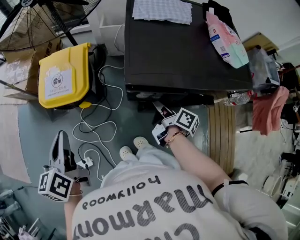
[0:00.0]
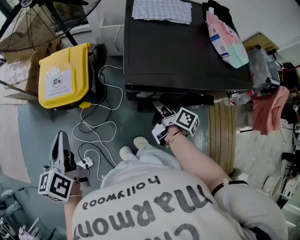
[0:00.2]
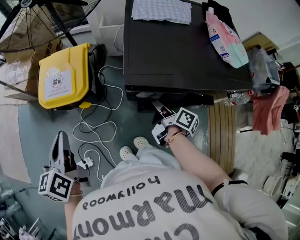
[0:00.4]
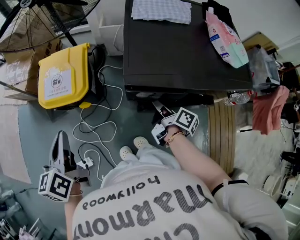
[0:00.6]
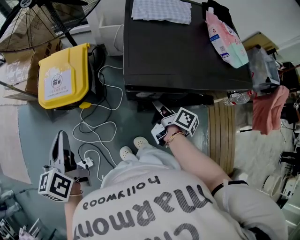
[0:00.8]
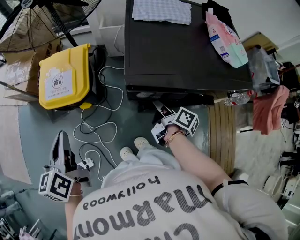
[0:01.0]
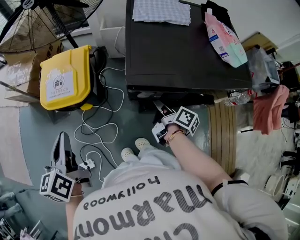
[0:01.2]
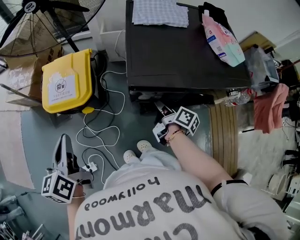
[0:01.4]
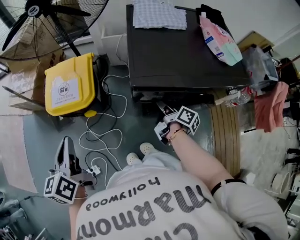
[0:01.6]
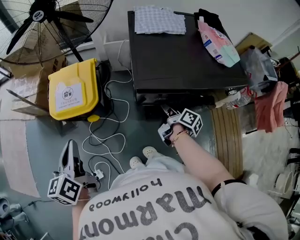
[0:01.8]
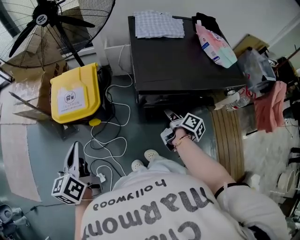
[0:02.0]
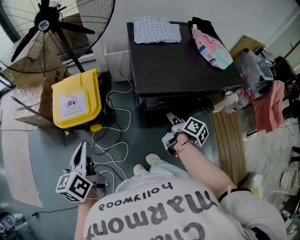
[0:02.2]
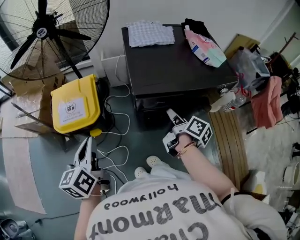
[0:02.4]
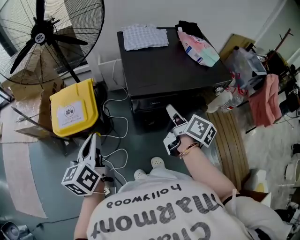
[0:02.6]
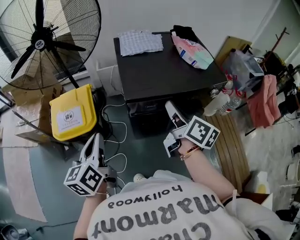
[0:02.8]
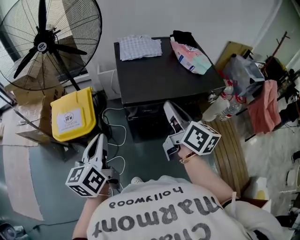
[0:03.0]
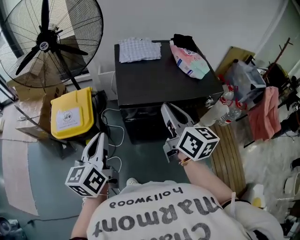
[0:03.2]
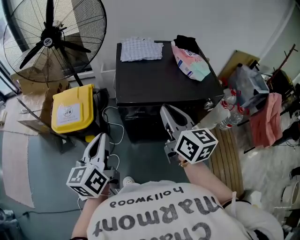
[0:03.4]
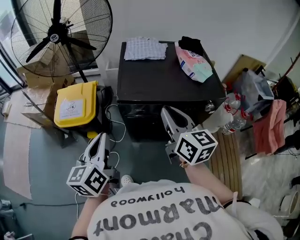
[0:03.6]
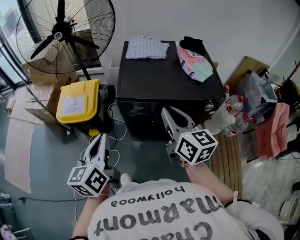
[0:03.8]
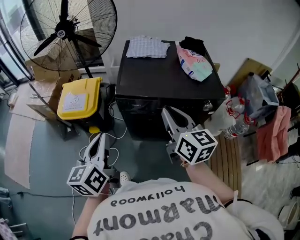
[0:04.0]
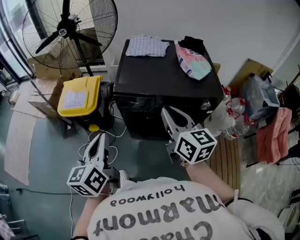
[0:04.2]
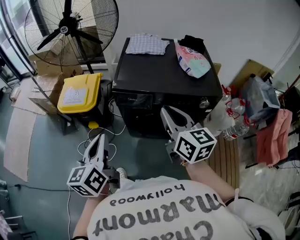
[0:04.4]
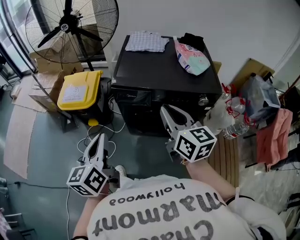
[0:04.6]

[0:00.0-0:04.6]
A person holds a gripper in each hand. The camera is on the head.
0:00.0 to 0:01.6: There are only small adjustments of the grippers.
0:01.6 to 0:03.0: The right gripper shifts approximately 25 cm upward, and twists about 40 degrees counterclockwise, seen from behind, while the left gripper shifts approximately 15 cm to the right.
0:03.0 to 0:04.6: The right gripper goes approximately 10 cm backward and to the right, and rotates approximately 30 degrees. Meanwhile the left gripper shifts some 20 cm backward and to the right.

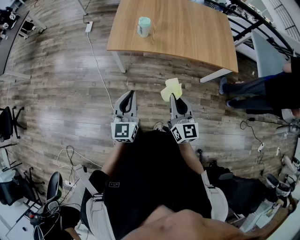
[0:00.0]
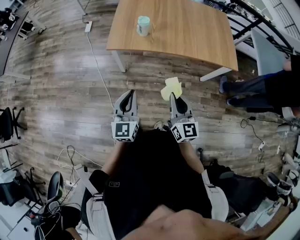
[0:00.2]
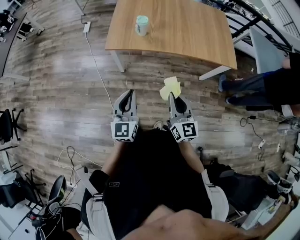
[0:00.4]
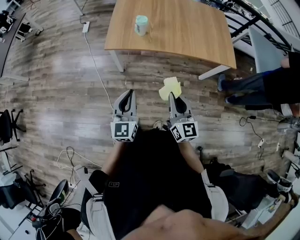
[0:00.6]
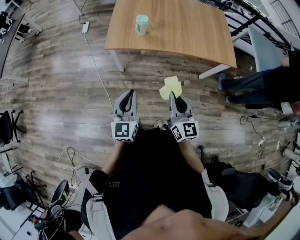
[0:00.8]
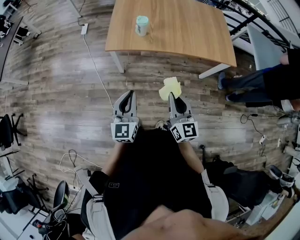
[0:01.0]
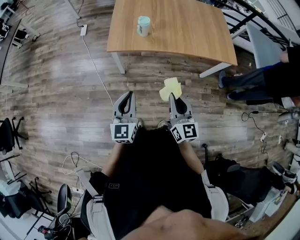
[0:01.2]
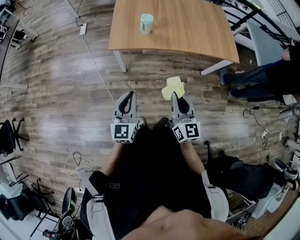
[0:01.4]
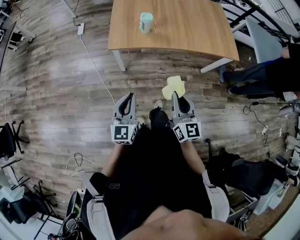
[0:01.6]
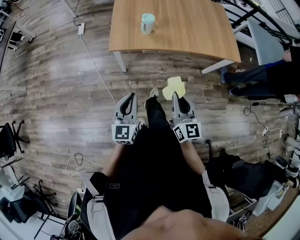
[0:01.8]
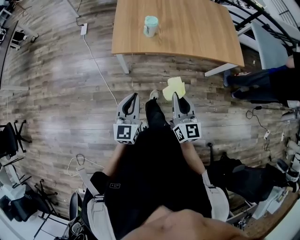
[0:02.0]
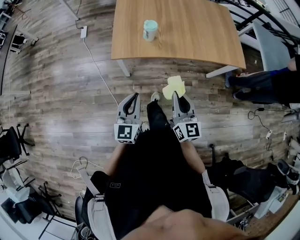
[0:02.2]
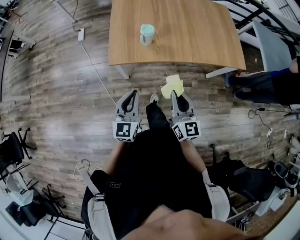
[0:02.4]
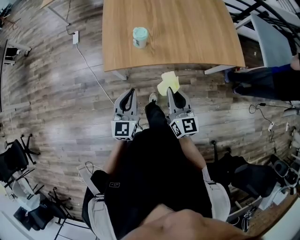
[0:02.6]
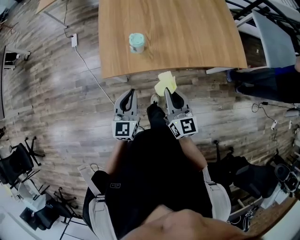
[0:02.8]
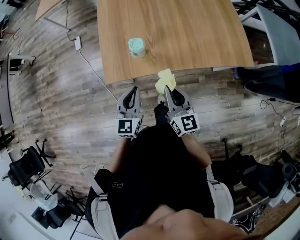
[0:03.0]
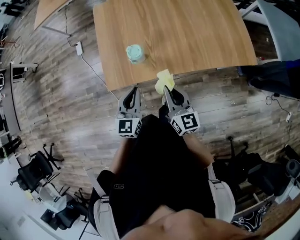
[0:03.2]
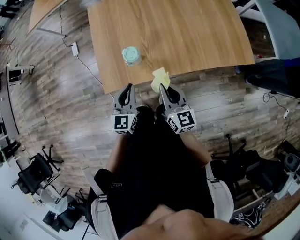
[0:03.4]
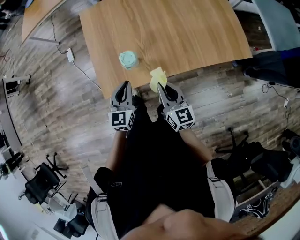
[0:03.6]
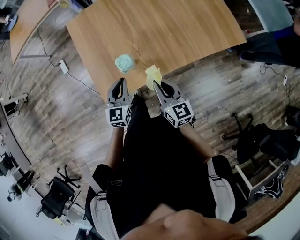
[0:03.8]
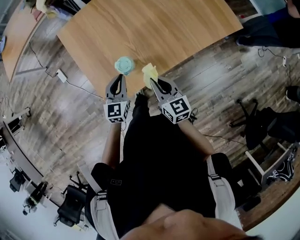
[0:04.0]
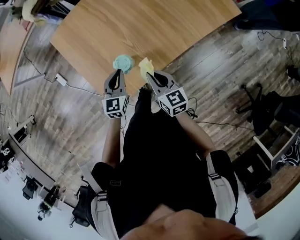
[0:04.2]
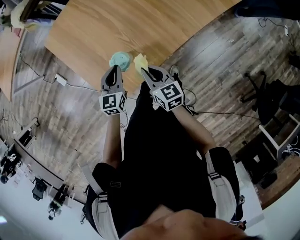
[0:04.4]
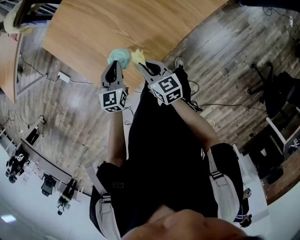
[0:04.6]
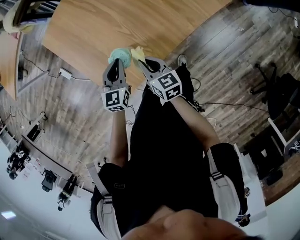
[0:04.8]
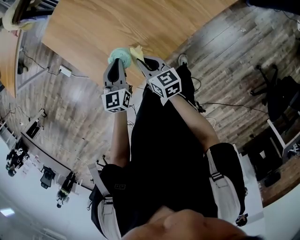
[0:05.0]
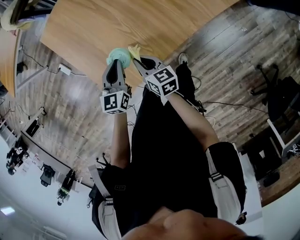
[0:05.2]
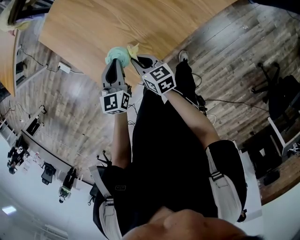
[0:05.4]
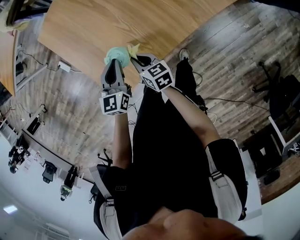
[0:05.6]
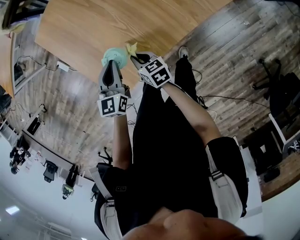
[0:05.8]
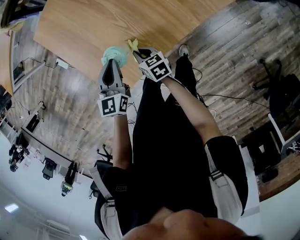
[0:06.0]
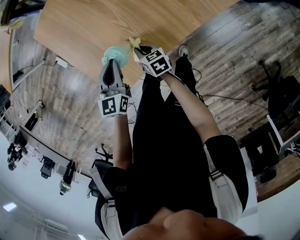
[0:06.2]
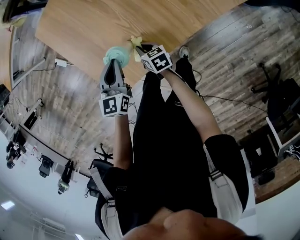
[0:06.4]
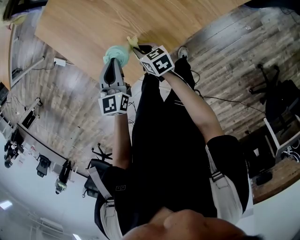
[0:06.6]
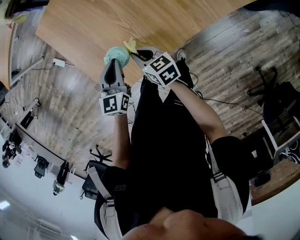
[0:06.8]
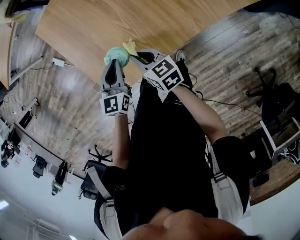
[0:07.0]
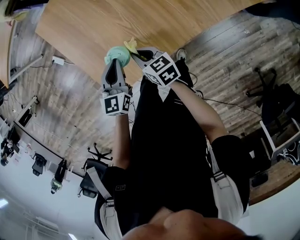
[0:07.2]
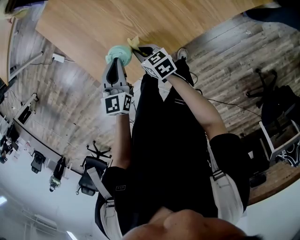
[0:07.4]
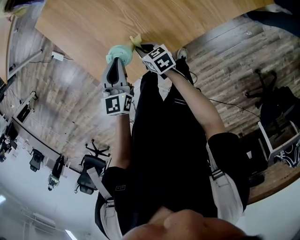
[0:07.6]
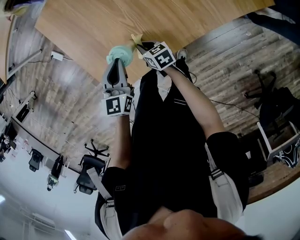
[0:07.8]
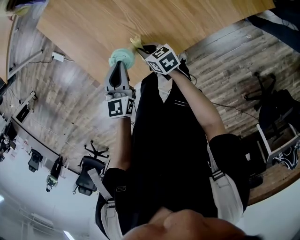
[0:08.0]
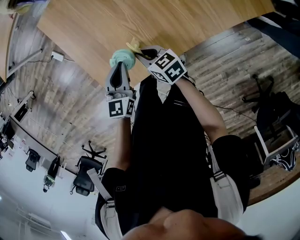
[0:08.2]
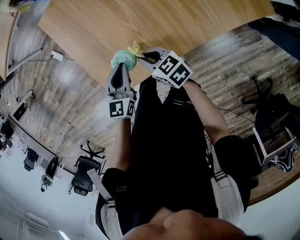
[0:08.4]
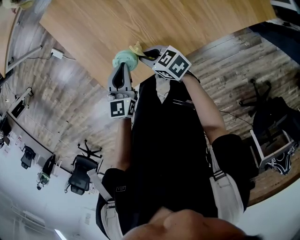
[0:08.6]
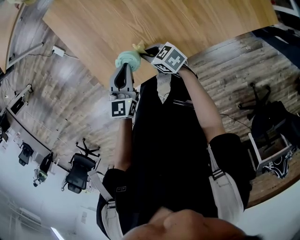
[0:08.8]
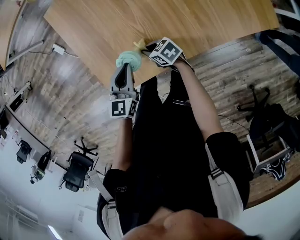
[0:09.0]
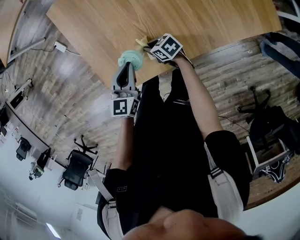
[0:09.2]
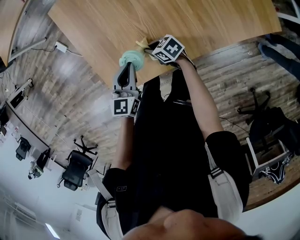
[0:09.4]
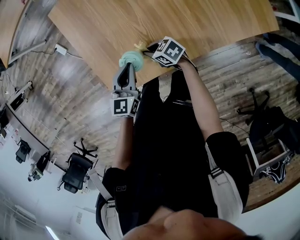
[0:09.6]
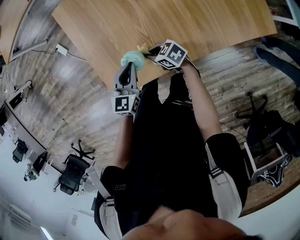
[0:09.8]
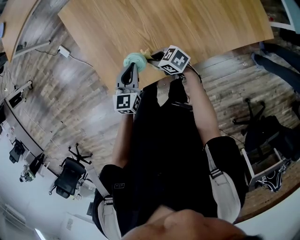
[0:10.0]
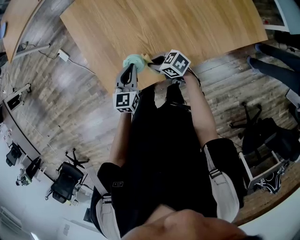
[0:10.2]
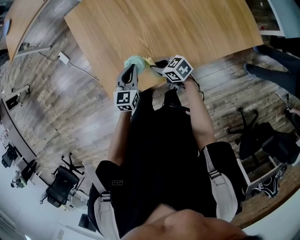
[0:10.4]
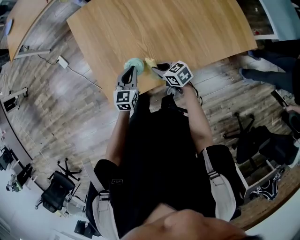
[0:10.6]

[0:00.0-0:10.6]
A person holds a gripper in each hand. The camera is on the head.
0:00.0 to 0:01.6: The two grippers go approximately 10 cm to the left.
0:01.6 to 0:03.0: The two grippers go some 30 cm forward.
0:03.0 to 0:04.6: The left gripper goes roughly 25 cm forward and downward, and swivels about 30 degrees, while the right gripper goes approximately 25 cm downward, forward and to the left, and turns by approximately 30 degrees.
0:04.6 to 0:06.0: The right gripper is displaced downward by roughly 15 cm, and turns by approximately 20 degrees.
0:06.0 to 0:07.6: The right gripper reaches about 10 cm upward, then returns.
0:07.6 to 0:09.0: The right gripper moves approximately 10 cm upward and comes back, and turns by some 30 degrees.
0:09.0 to 0:10.6: The right gripper moves upward, roughly 10 cm.

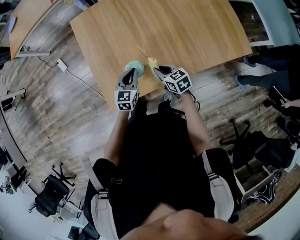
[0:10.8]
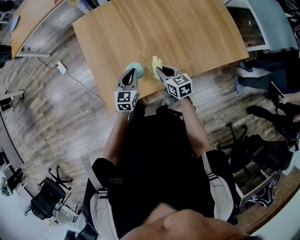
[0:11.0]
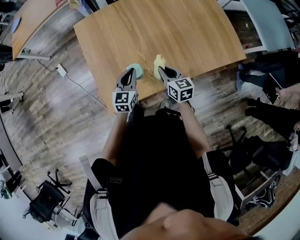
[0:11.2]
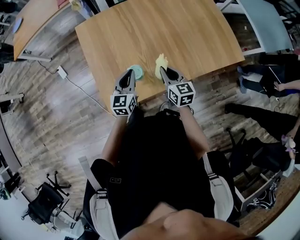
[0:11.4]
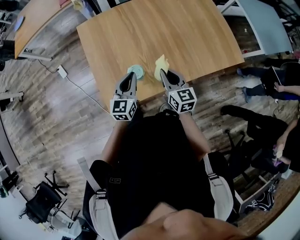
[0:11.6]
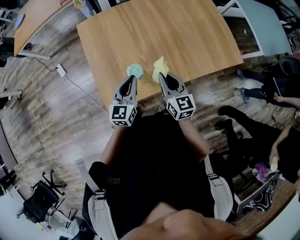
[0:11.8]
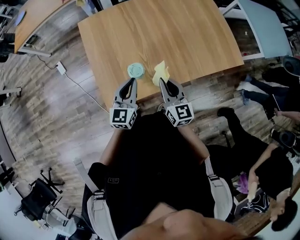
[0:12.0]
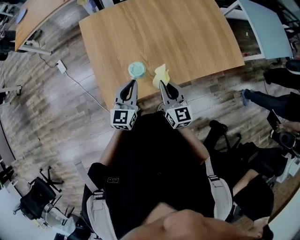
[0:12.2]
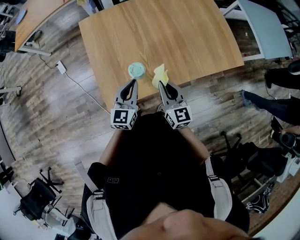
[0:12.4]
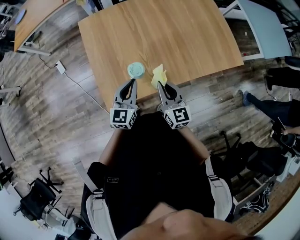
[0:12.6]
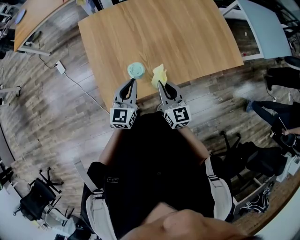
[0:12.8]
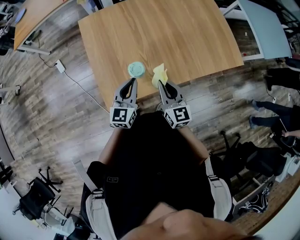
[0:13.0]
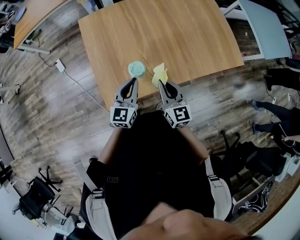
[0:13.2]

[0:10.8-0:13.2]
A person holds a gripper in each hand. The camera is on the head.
0:10.8 to 0:12.0: Both grippers travel together upward, approximately 15 cm. The right gripper turns by approximately 40 degrees.
0:12.0 to 0:13.2: The grippers move only a little.

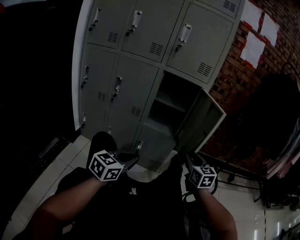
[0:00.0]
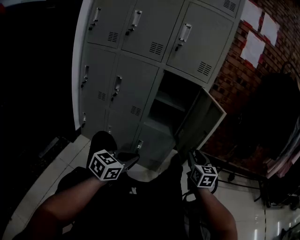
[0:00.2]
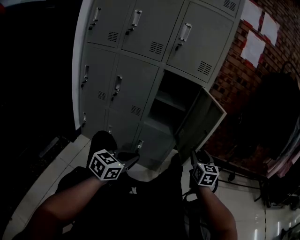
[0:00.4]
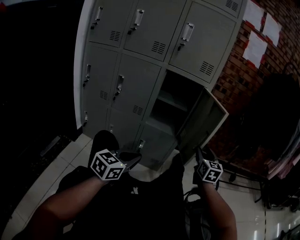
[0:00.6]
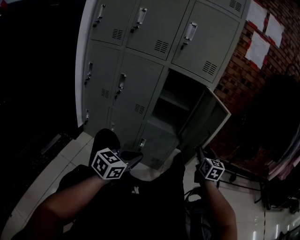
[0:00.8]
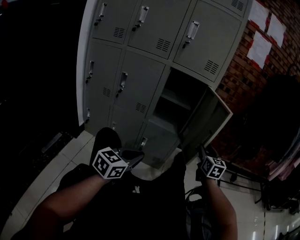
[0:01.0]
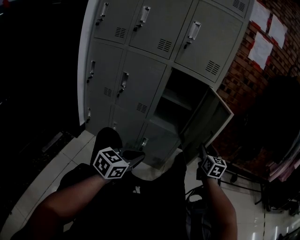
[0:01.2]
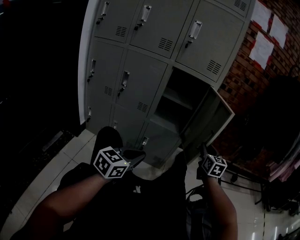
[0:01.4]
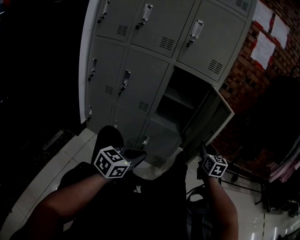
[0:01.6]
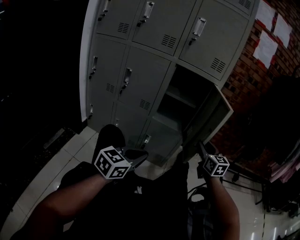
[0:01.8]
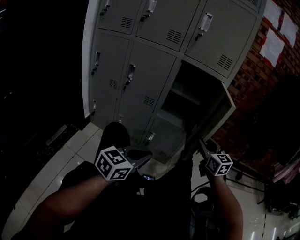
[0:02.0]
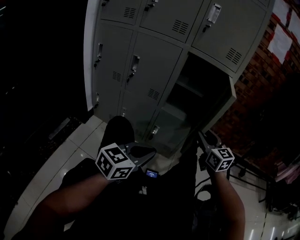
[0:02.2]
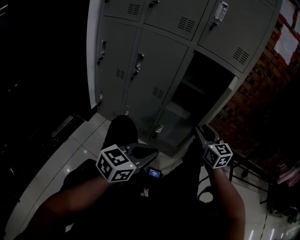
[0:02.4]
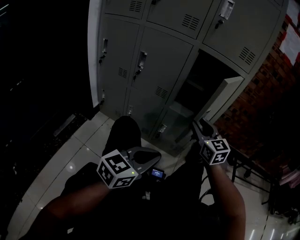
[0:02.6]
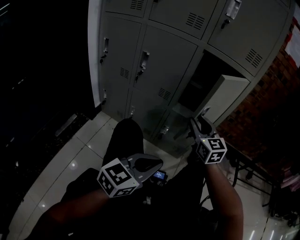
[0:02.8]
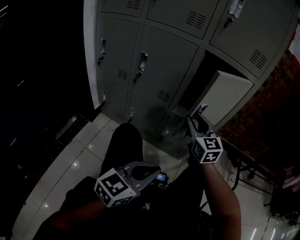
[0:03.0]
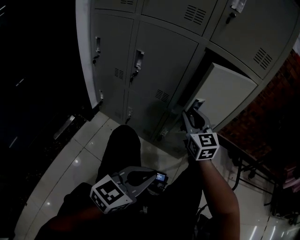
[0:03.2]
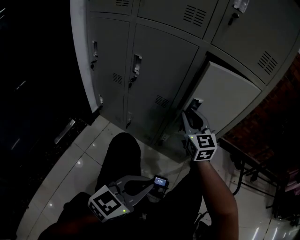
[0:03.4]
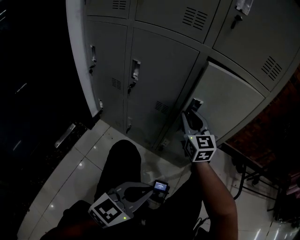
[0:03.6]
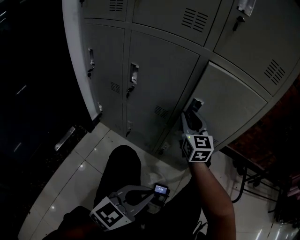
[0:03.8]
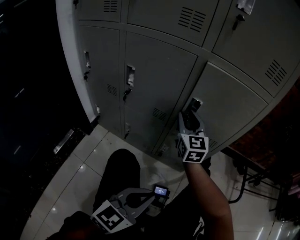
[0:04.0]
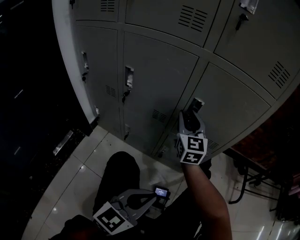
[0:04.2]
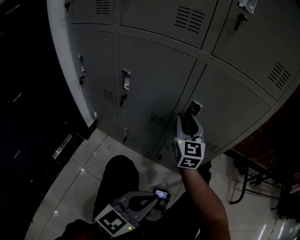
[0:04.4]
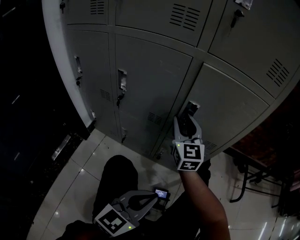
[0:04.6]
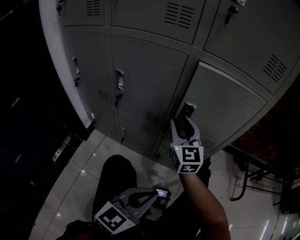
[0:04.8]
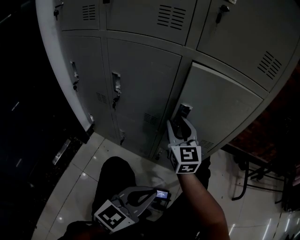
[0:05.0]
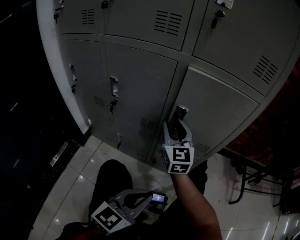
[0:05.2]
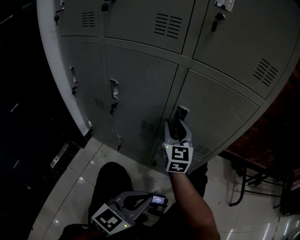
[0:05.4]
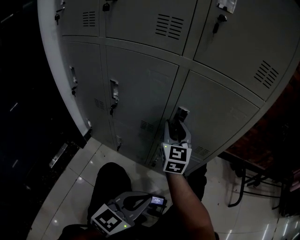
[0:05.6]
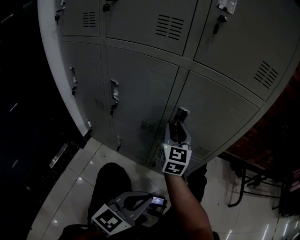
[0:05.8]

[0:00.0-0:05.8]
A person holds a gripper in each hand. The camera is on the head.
0:00.0 to 0:01.4: The right gripper moves forward, about 10 cm.
0:01.4 to 0:02.8: The right gripper shifts roughly 25 cm to the left, and rotates approximately 30 degrees.
0:02.8 to 0:04.4: The left gripper moves forward, roughly 10 cm, while the right gripper is displaced forward and to the left by approximately 20 cm.
0:04.4 to 0:05.8: There are only small adjustments of the grippers.
